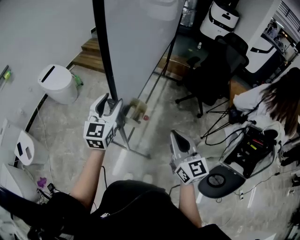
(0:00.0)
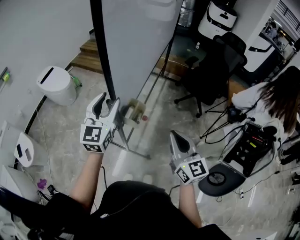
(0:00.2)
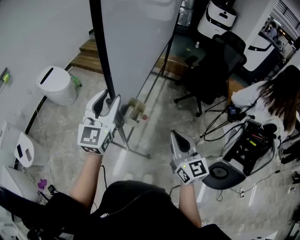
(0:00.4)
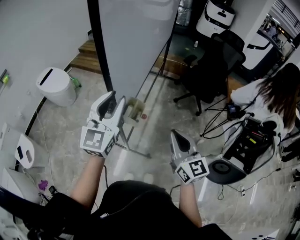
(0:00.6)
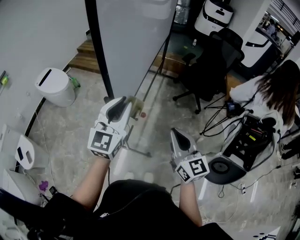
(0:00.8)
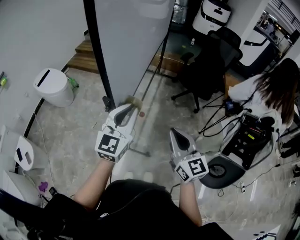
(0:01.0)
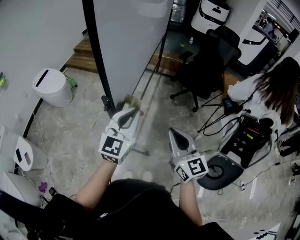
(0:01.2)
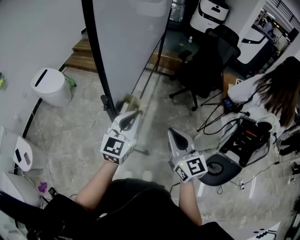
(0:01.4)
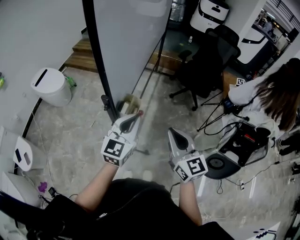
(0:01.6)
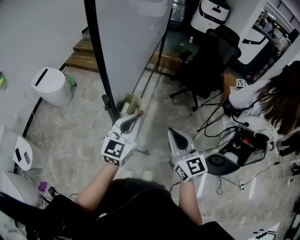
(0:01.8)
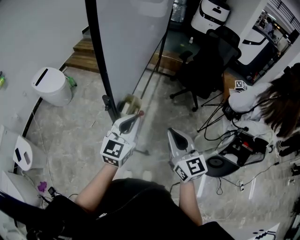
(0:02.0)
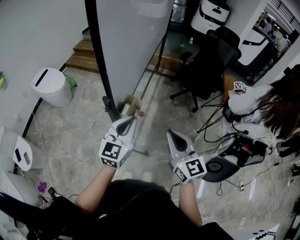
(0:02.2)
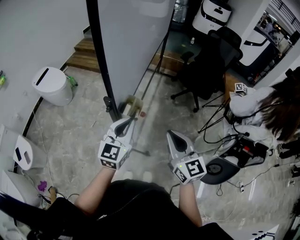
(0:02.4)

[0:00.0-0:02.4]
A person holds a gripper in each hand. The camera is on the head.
0:00.0 to 0:01.2: The left gripper goes about 15 cm to the right and backward, and closes.
0:01.2 to 0:02.4: The left gripper moves downward, roughly 5 cm.

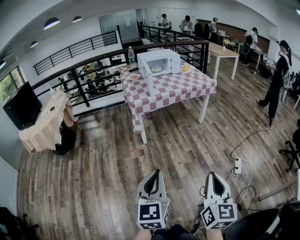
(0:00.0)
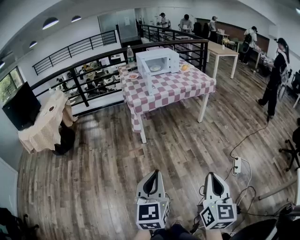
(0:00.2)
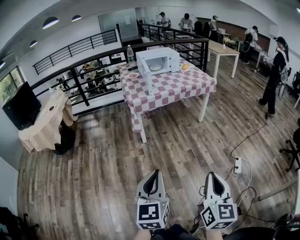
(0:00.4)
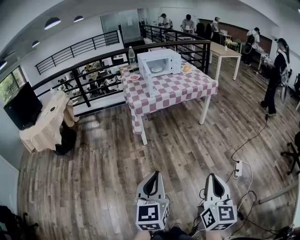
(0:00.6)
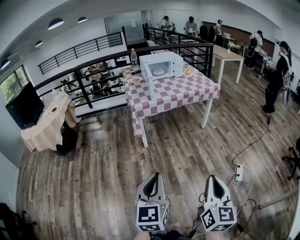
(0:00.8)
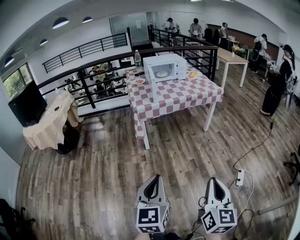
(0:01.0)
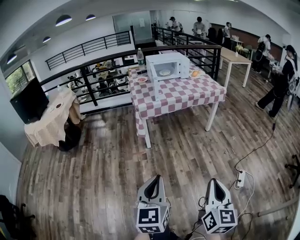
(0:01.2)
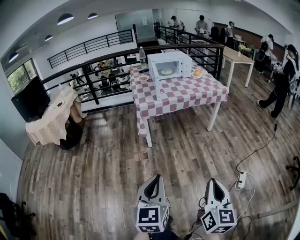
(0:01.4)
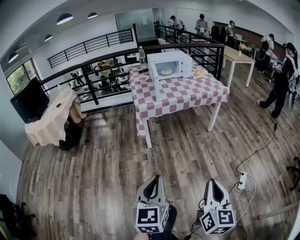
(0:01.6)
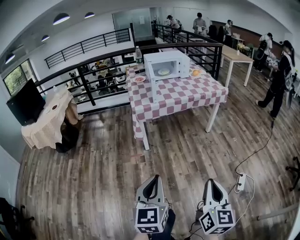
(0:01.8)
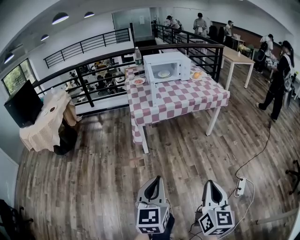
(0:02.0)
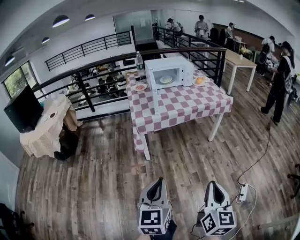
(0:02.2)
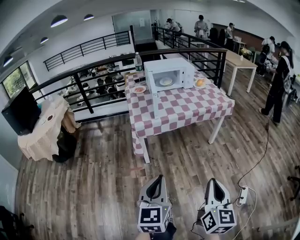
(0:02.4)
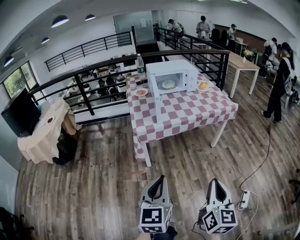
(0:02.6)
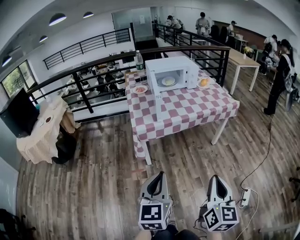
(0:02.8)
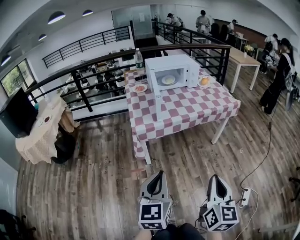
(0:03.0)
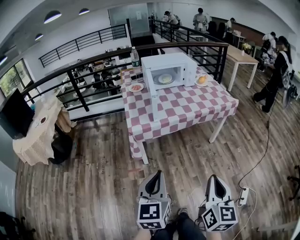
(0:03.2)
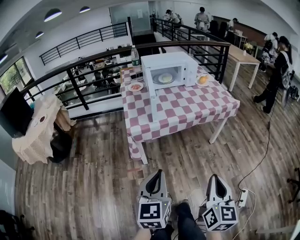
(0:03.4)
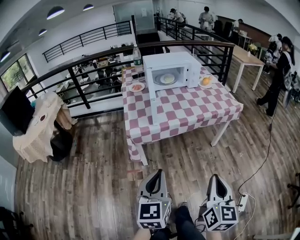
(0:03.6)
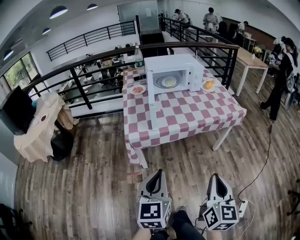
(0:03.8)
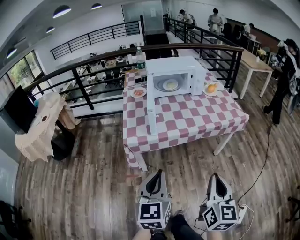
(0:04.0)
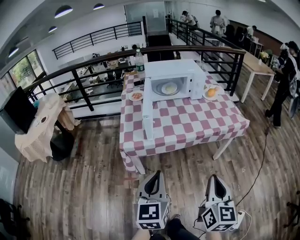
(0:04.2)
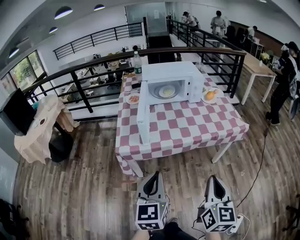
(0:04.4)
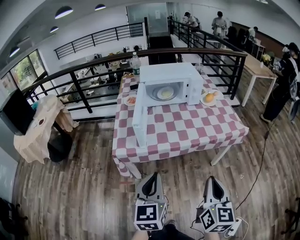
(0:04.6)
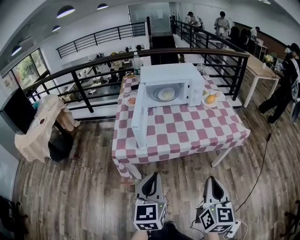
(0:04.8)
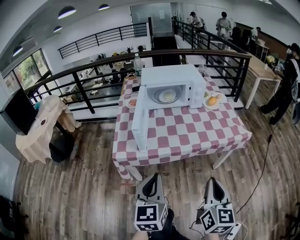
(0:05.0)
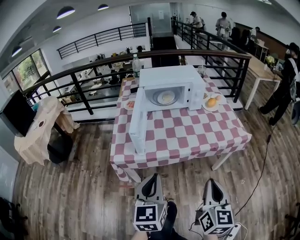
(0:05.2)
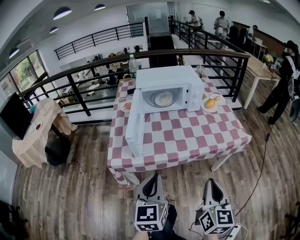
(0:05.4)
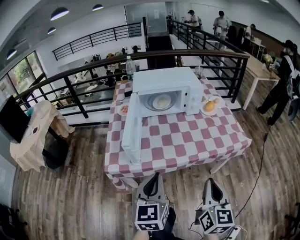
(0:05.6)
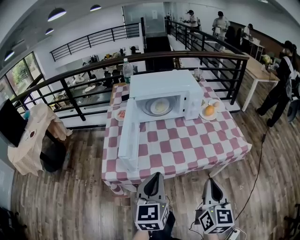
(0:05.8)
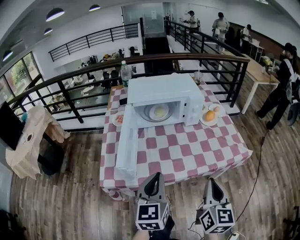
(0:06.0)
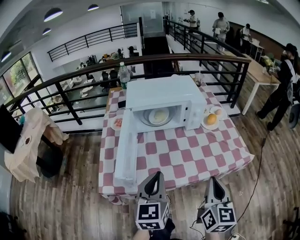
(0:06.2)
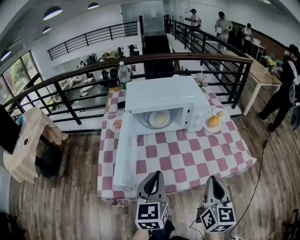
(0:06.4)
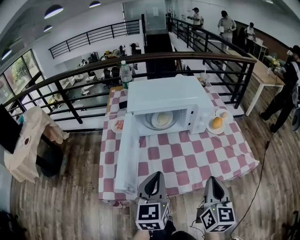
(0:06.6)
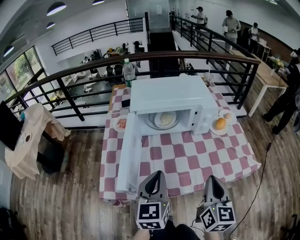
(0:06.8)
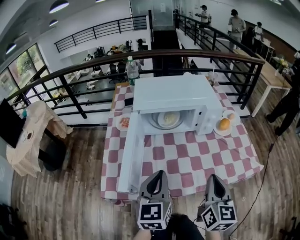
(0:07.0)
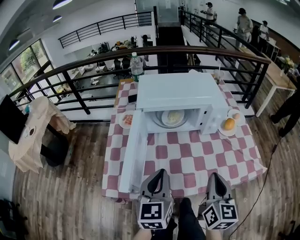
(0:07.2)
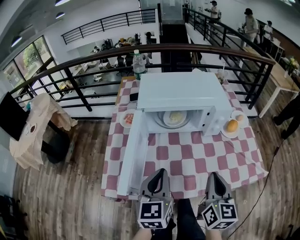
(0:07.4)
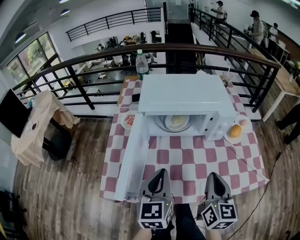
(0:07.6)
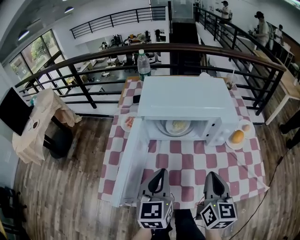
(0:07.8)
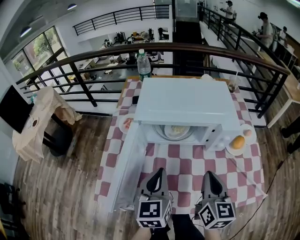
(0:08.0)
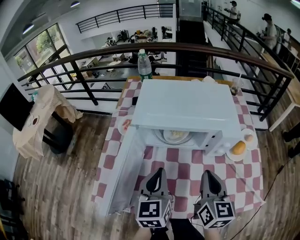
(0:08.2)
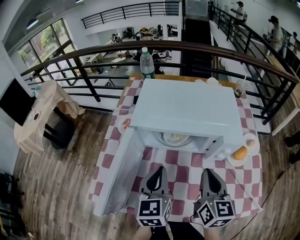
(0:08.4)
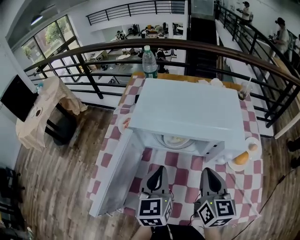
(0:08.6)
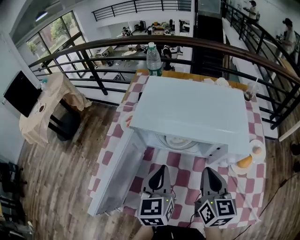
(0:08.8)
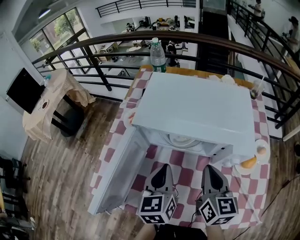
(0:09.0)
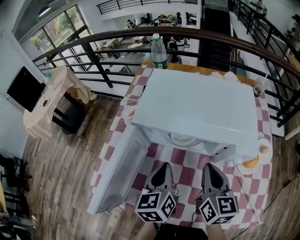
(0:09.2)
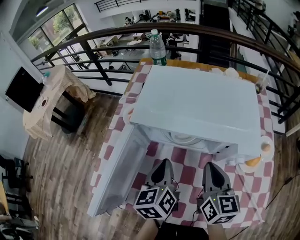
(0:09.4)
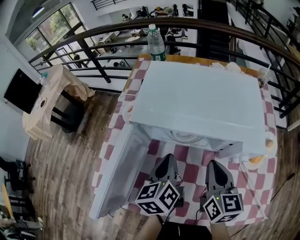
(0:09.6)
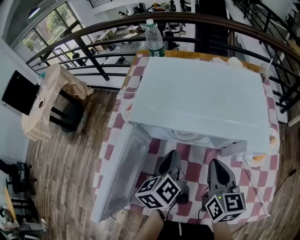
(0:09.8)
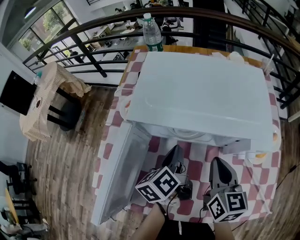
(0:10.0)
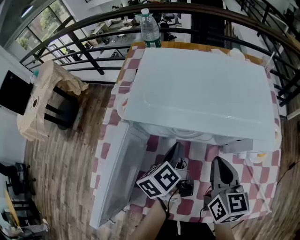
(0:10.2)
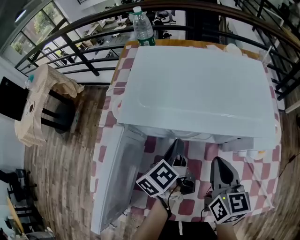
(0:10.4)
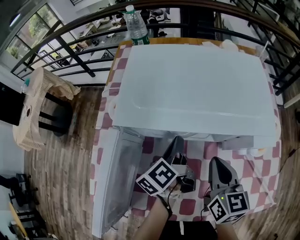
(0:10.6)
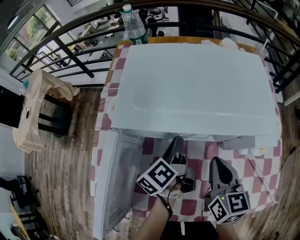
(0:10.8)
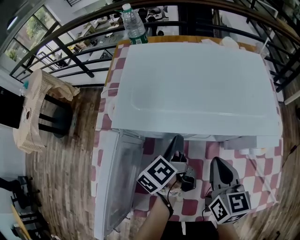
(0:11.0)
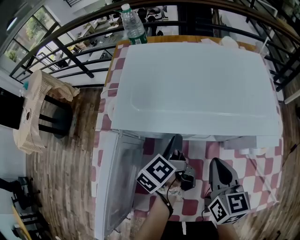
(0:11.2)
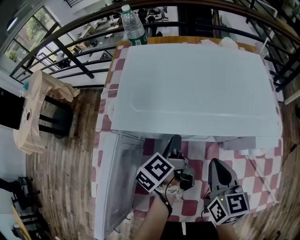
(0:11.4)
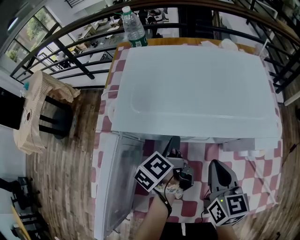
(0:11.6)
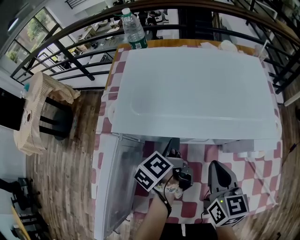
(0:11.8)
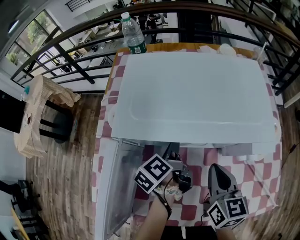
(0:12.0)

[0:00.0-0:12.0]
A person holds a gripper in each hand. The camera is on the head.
0:00.0 to 0:01.6: Both grippers move forward, approximately 10 cm.
0:01.6 to 0:03.0: The two grippers go approximately 30 cm forward.
0:03.0 to 0:04.4: The two grippers go some 25 cm forward and to the right.
0:04.4 to 0:06.0: The two grippers go some 25 cm forward.
0:06.0 to 0:07.6: The grippers both shift forward by some 20 cm.
0:07.6 to 0:09.0: Both grippers travel together forward, roughly 15 cm. The right gripper changes its angle by approximately 20 degrees.
0:09.0 to 0:10.4: The right gripper shifts by roughly 5 cm, while the left gripper goes approximately 15 cm downward and forward, and rolls counterclockwise, seen from behind, by some 50 degrees.
0:10.4 to 0:12.0: The left gripper opens up.

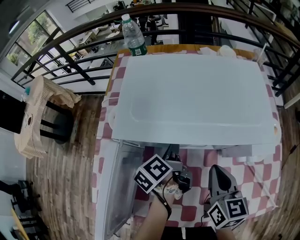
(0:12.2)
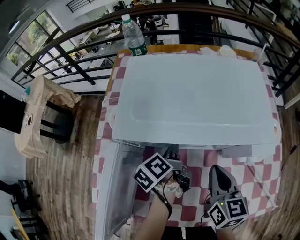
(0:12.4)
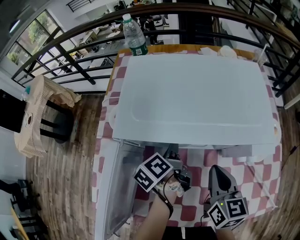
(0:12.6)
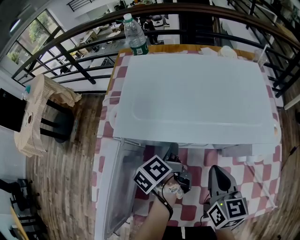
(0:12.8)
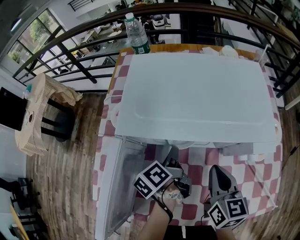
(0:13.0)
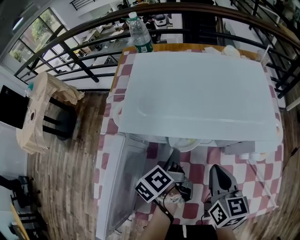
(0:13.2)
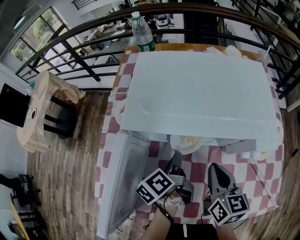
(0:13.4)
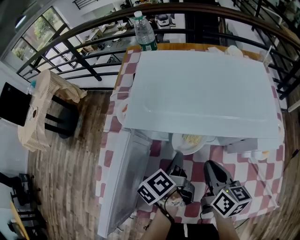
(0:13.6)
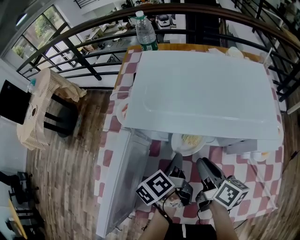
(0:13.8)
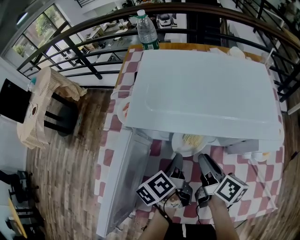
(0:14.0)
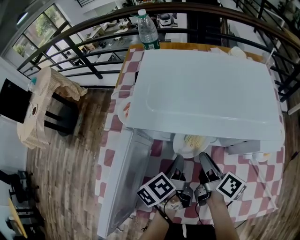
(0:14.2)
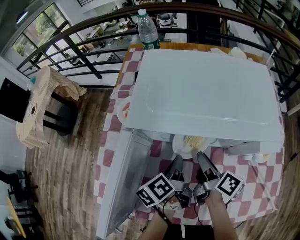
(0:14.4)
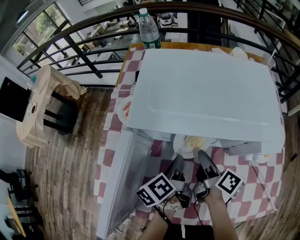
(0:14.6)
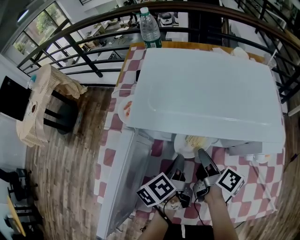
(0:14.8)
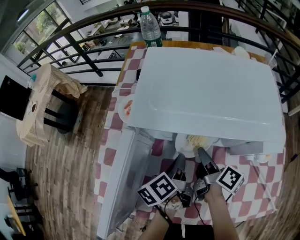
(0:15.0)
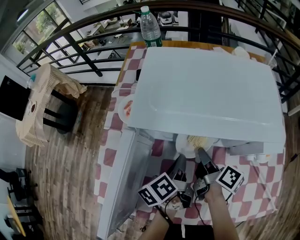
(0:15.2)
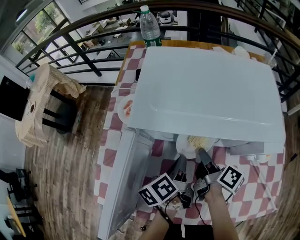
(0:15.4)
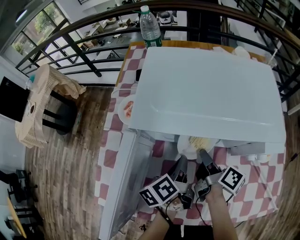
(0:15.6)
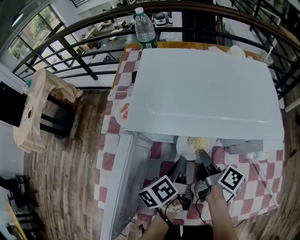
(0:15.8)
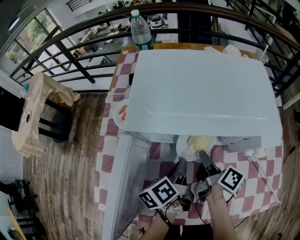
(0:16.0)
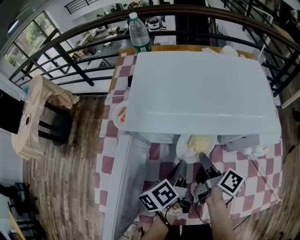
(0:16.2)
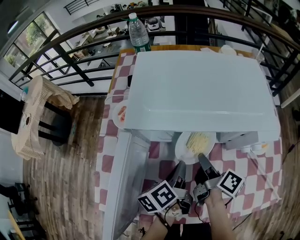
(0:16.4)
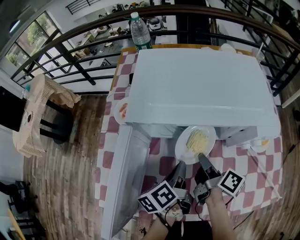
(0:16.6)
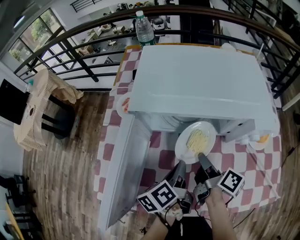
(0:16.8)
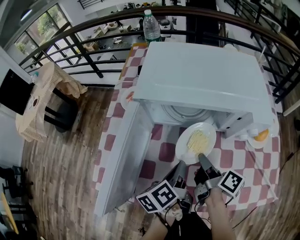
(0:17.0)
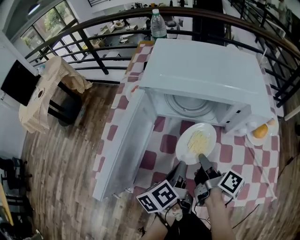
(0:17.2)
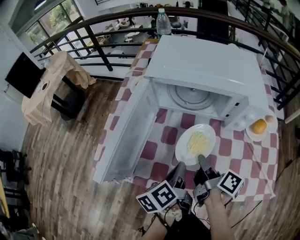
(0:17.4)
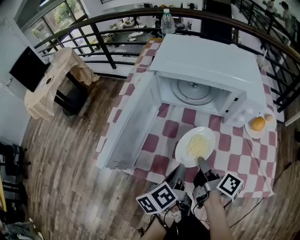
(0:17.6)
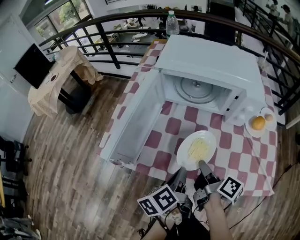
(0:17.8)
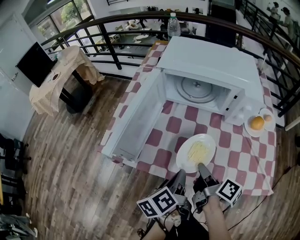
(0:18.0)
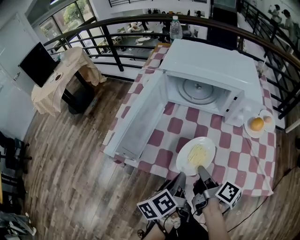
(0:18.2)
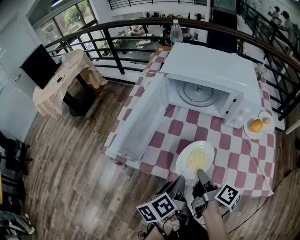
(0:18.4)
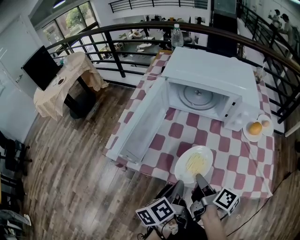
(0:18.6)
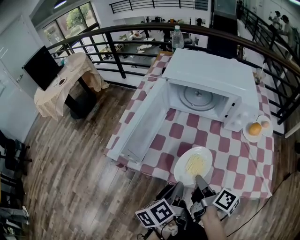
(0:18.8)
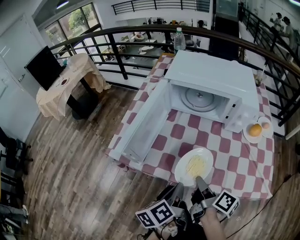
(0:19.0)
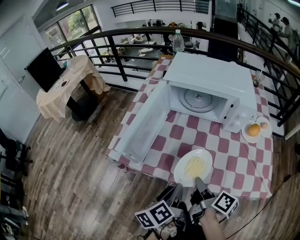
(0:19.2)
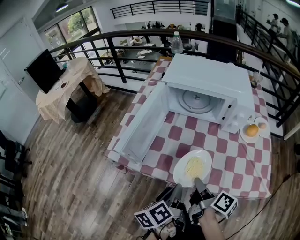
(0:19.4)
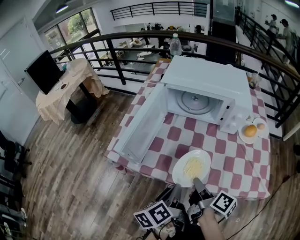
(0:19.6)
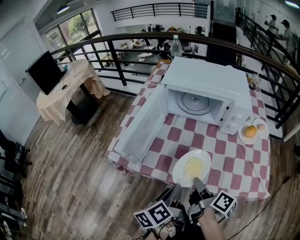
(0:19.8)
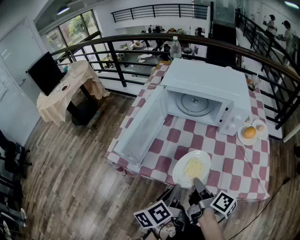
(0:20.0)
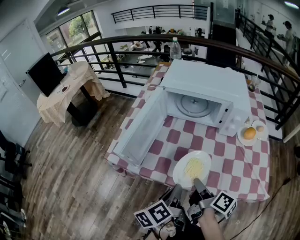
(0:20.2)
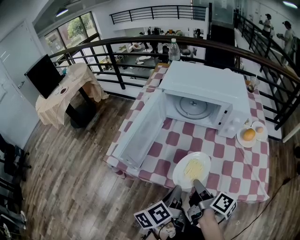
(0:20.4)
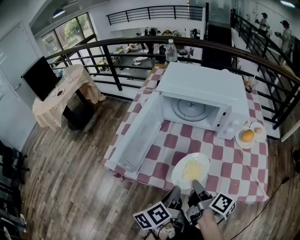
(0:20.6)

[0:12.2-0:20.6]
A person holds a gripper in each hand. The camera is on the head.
0:12.2 to 0:13.6: The left gripper goes approximately 5 cm backward.
0:13.6 to 0:15.0: The right gripper goes some 5 cm downward, and turns by approximately 40 degrees.
0:15.0 to 0:16.4: The grippers stay close to where they were, moving slightly.
0:16.4 to 0:17.8: Both grippers travel together backward, approximately 20 cm.
0:17.8 to 0:19.2: The grippers both shift backward by about 10 cm.
0:19.2 to 0:20.6: There are only small adjustments of the grippers.

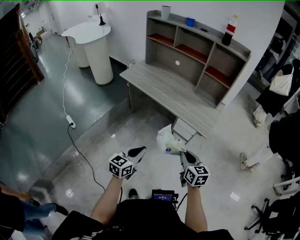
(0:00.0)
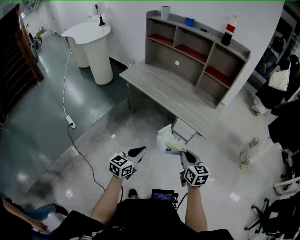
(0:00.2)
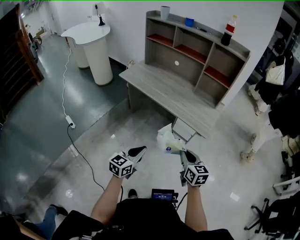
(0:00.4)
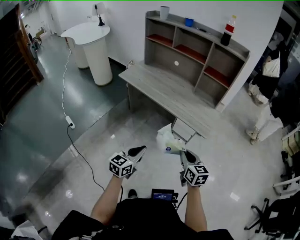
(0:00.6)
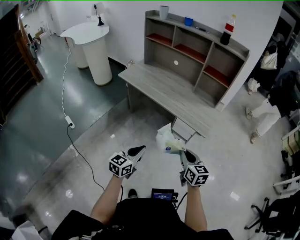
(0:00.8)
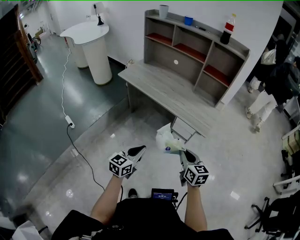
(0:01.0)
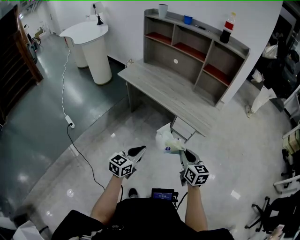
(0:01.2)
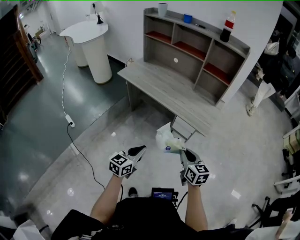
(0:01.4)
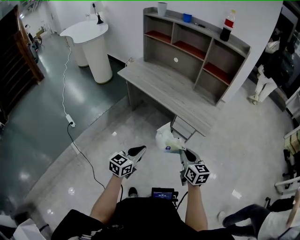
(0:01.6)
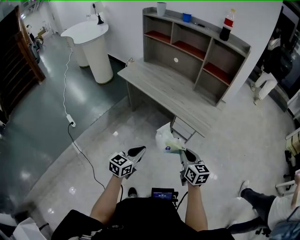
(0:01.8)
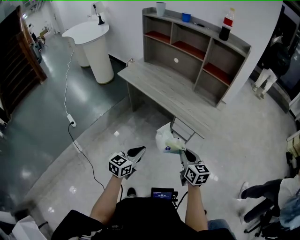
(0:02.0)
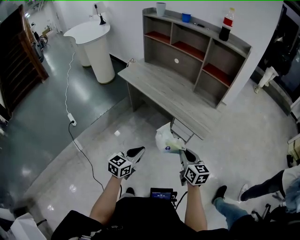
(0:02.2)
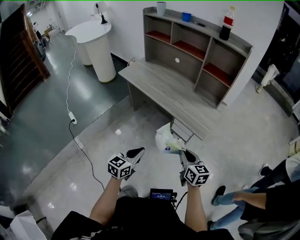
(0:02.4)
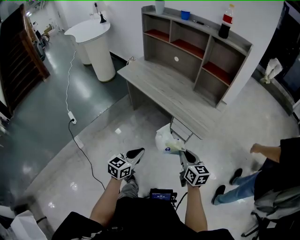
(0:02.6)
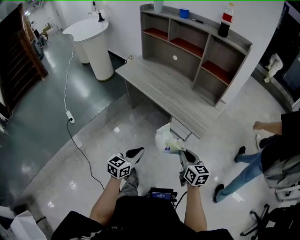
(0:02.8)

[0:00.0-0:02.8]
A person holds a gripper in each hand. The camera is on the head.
0:00.0 to 0:01.4: The grippers move only a little.
0:01.4 to 0:02.8: The two grippers go about 5 cm to the right.
